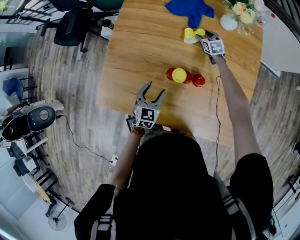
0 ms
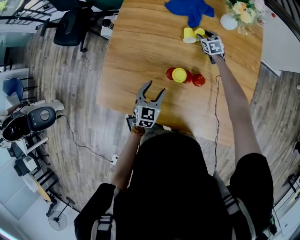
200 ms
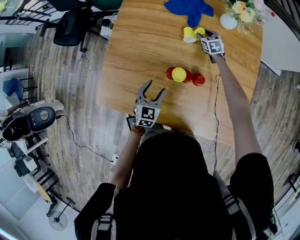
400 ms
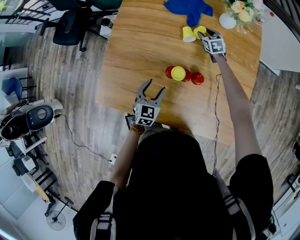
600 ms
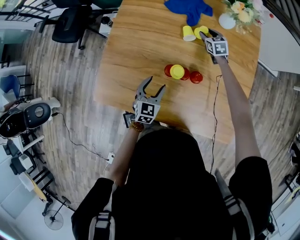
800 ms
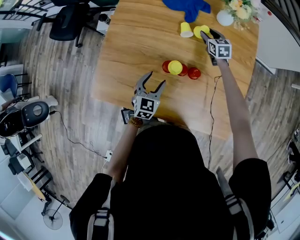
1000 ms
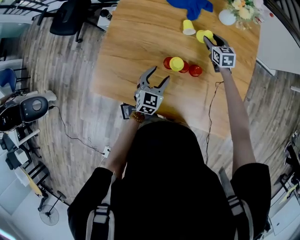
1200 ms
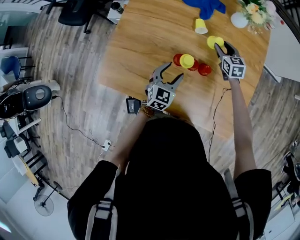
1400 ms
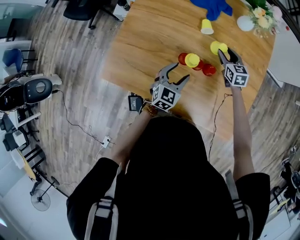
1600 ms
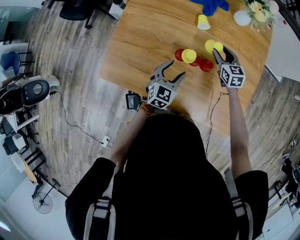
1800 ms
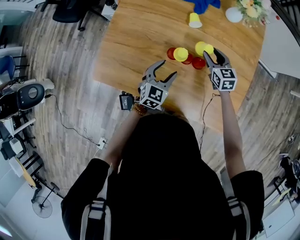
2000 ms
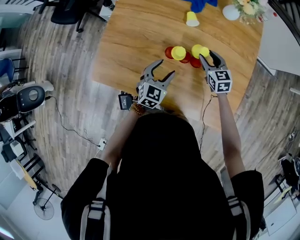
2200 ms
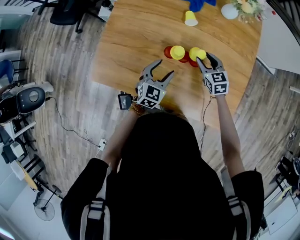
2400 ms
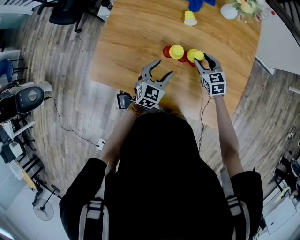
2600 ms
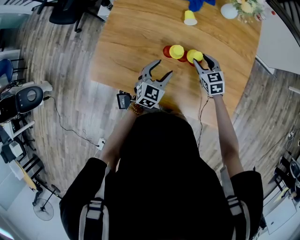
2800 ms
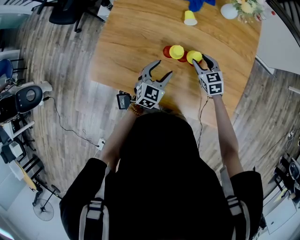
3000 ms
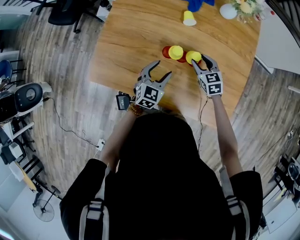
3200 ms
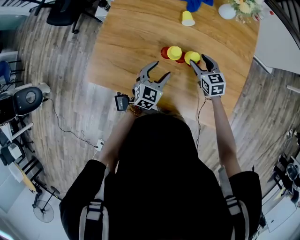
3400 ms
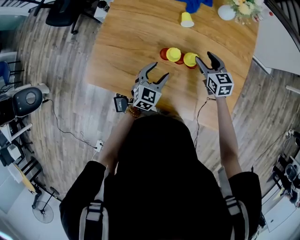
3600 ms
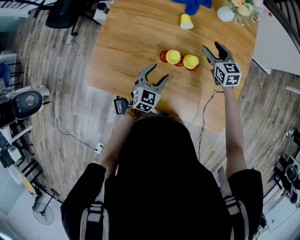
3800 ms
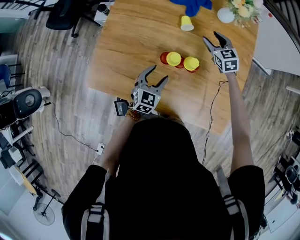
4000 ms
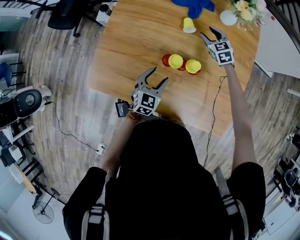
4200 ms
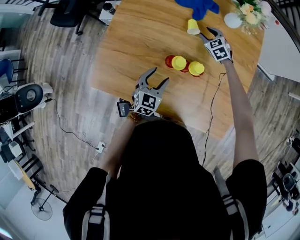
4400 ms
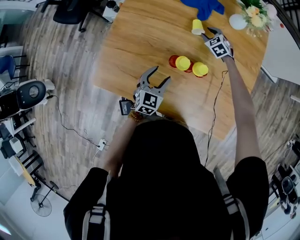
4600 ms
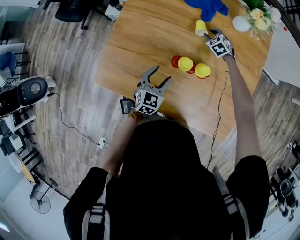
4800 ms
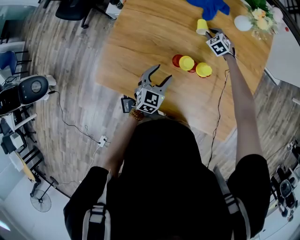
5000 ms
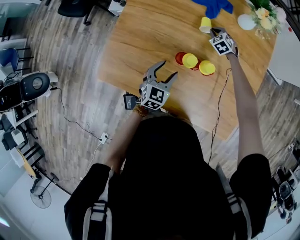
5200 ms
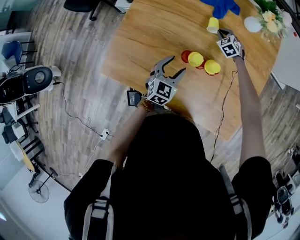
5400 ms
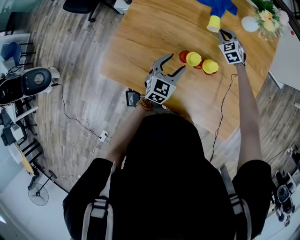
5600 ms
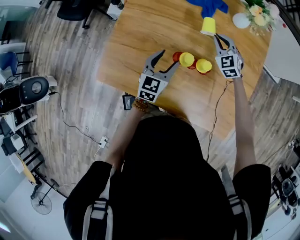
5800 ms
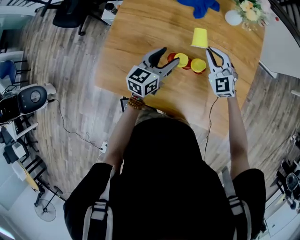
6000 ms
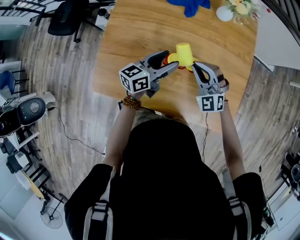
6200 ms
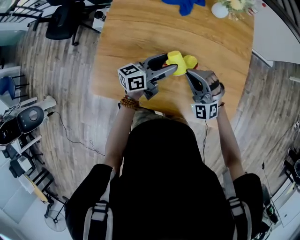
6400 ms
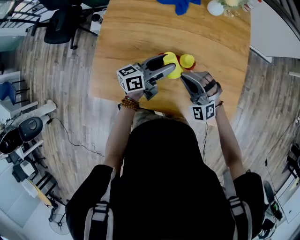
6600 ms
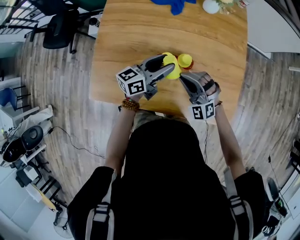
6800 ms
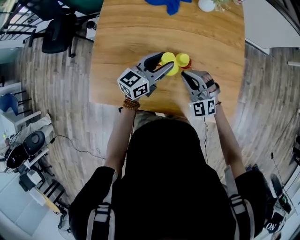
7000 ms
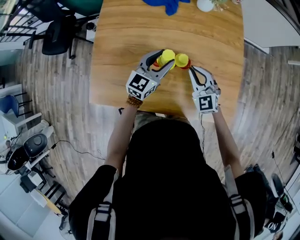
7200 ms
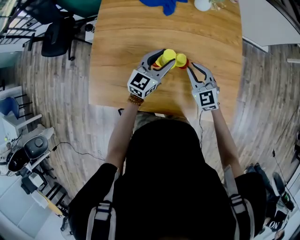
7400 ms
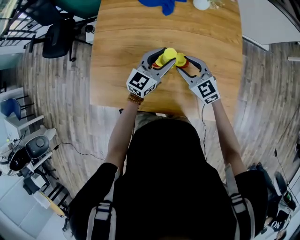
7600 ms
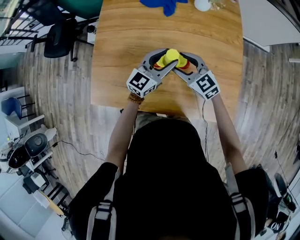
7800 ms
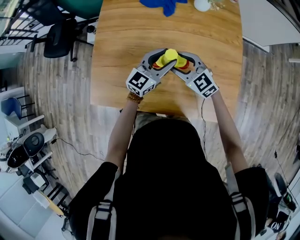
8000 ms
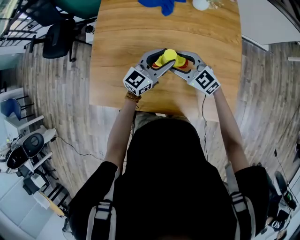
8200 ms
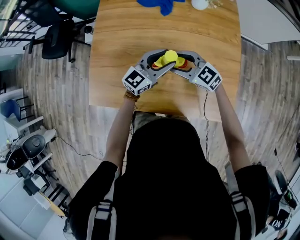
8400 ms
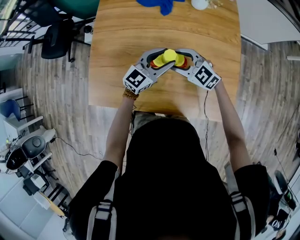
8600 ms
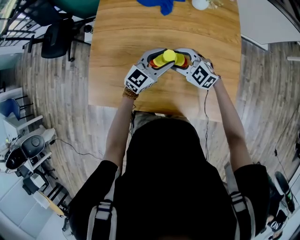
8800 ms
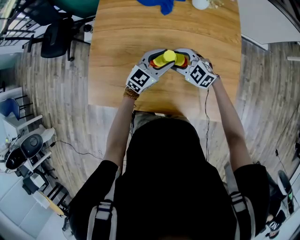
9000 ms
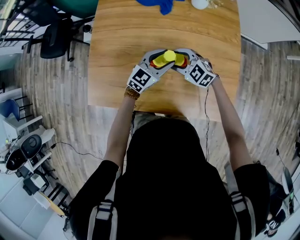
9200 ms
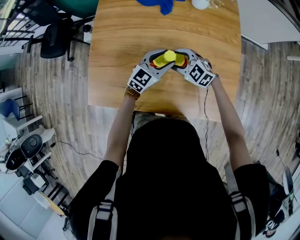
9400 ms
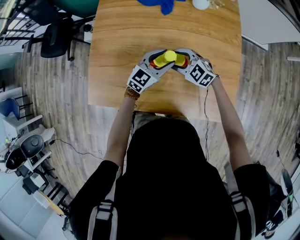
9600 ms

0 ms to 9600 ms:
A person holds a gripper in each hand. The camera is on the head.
0 ms to 1600 ms: The right gripper is displaced backward and upward by roughly 20 cm, while the left gripper is displaced to the right by approximately 5 cm.
1600 ms to 3200 ms: The right gripper moves backward, approximately 10 cm.
3200 ms to 4800 ms: The left gripper ends up approximately 5 cm from where it was; the right gripper goes some 25 cm forward, and turns by some 30 degrees.
4800 ms to 6400 ms: The right gripper moves backward and upward, roughly 35 cm, and tips its fingers upward by some 40 degrees. The left gripper travels upward and to the right by some 15 cm, and turns by approximately 60 degrees.
6400 ms to 8000 ms: The right gripper rolls clockwise, seen from behind, by about 40 degrees, and opens its fingers. Meanwhile the left gripper travels to the right by some 5 cm, and twists roughly 40 degrees clockwise, seen from behind.
8000 ms to 9600 ms: The left gripper ends up about 5 cm from where it was. The right gripper goes roughly 5 cm downward.

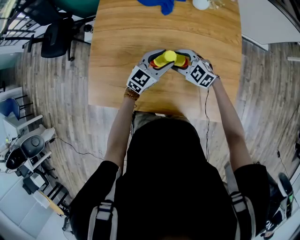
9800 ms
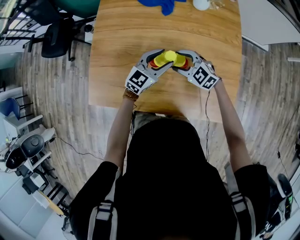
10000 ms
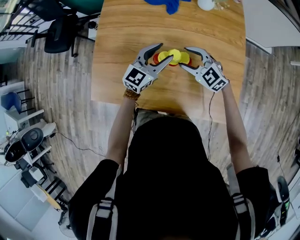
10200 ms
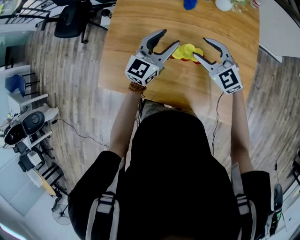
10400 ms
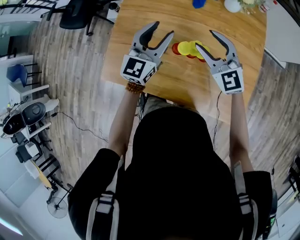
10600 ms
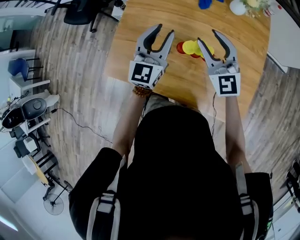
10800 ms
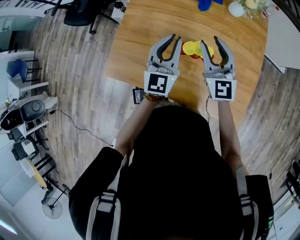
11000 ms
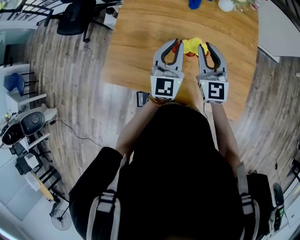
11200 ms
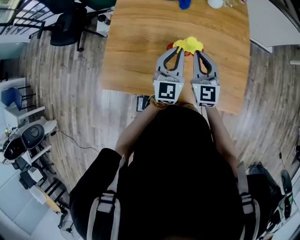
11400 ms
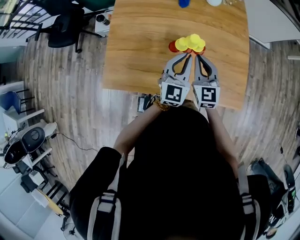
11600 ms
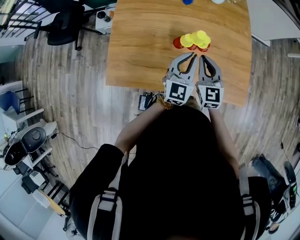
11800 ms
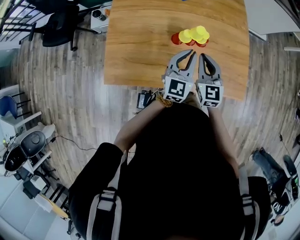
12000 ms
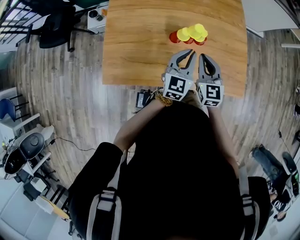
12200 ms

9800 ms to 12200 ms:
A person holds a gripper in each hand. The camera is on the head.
9800 ms to 11000 ms: The left gripper shifts about 20 cm upward and to the left, rotates about 50 degrees, and closes up. Meanwhile the right gripper is displaced upward by roughly 20 cm, and points its fingers roughly 40 degrees further upward.
11000 ms to 12200 ms: The left gripper heads downward, backward and to the right, covering roughly 15 cm, and changes its angle by about 30 degrees, while the right gripper moves backward and downward, some 15 cm, changes its angle by about 30 degrees, and closes its fingers.

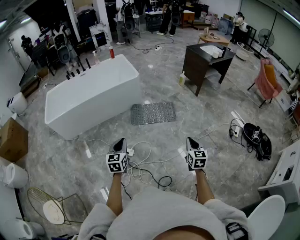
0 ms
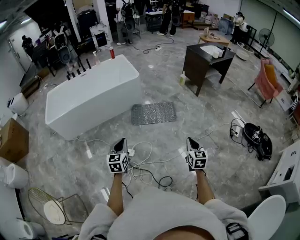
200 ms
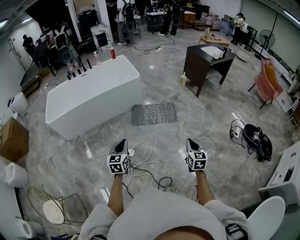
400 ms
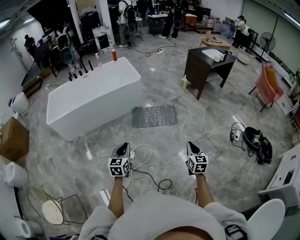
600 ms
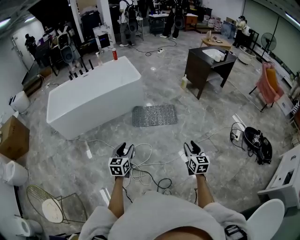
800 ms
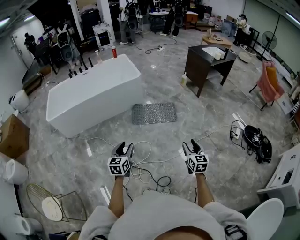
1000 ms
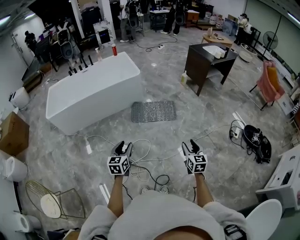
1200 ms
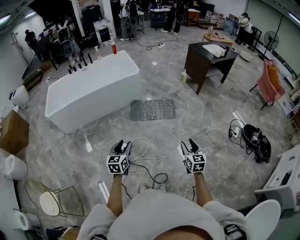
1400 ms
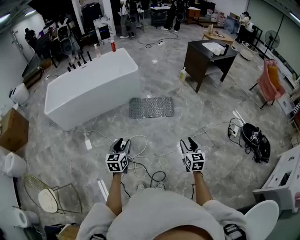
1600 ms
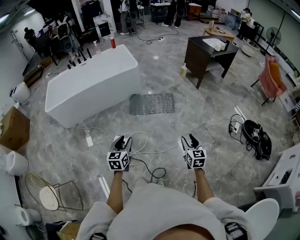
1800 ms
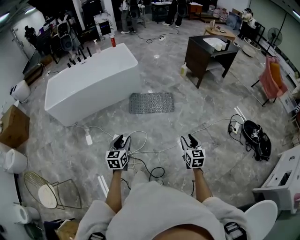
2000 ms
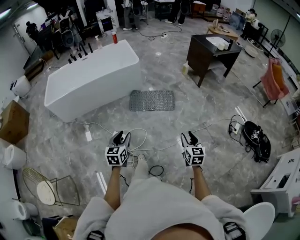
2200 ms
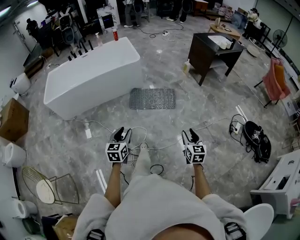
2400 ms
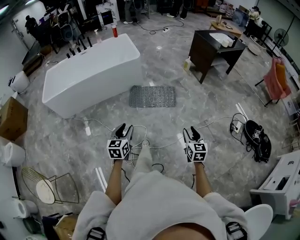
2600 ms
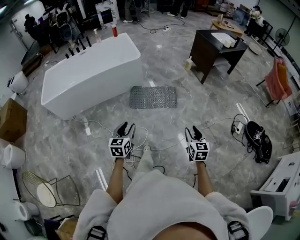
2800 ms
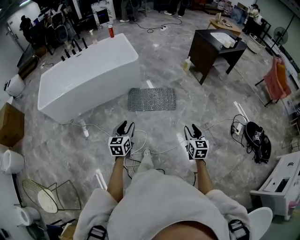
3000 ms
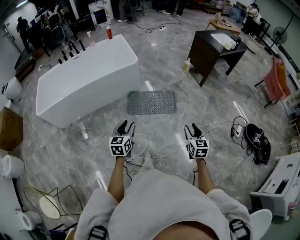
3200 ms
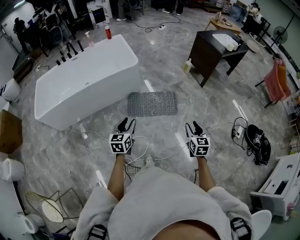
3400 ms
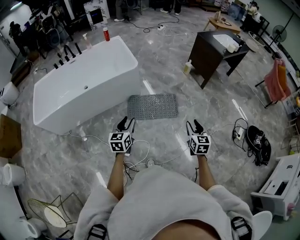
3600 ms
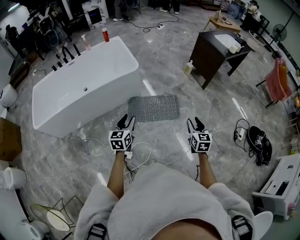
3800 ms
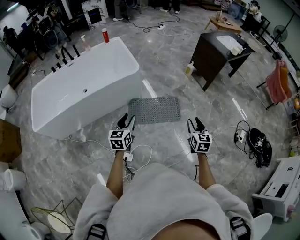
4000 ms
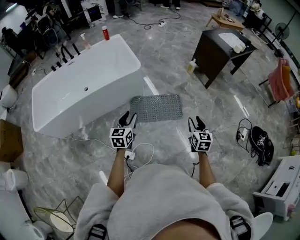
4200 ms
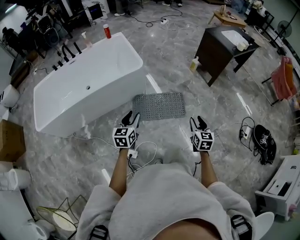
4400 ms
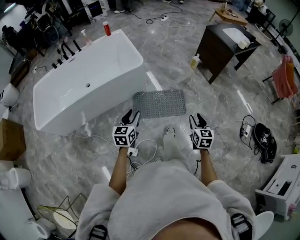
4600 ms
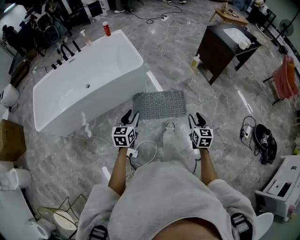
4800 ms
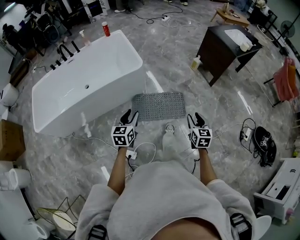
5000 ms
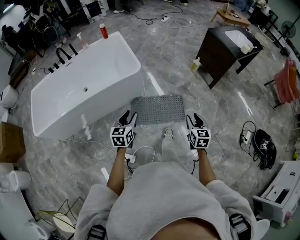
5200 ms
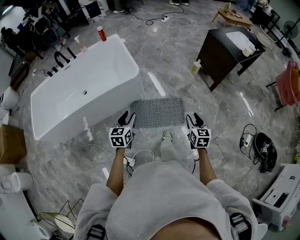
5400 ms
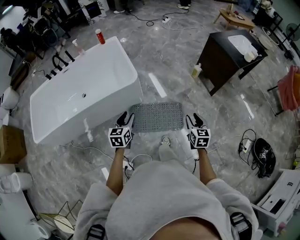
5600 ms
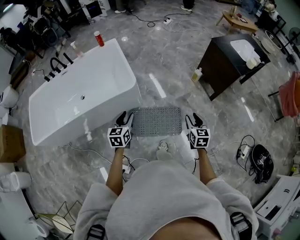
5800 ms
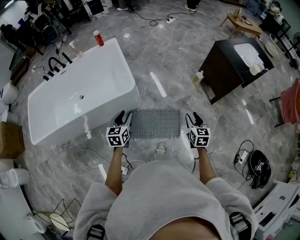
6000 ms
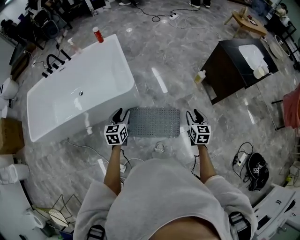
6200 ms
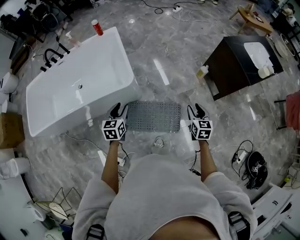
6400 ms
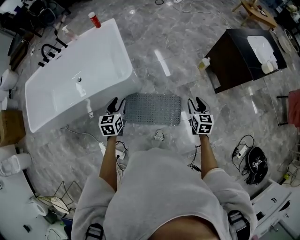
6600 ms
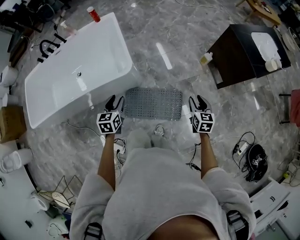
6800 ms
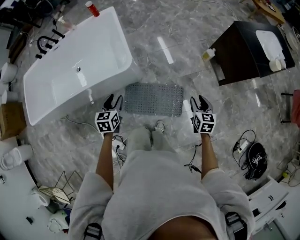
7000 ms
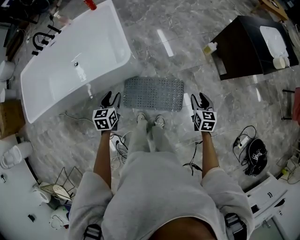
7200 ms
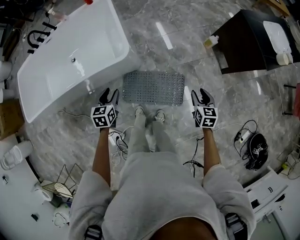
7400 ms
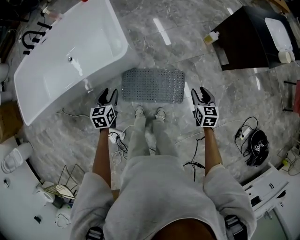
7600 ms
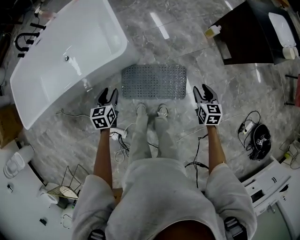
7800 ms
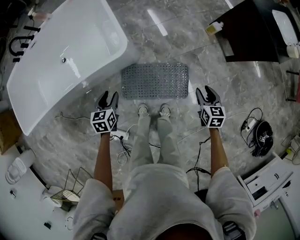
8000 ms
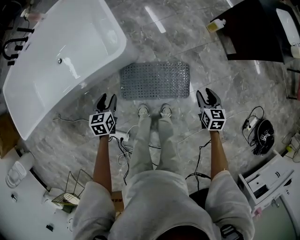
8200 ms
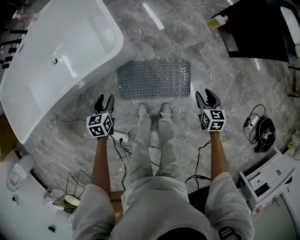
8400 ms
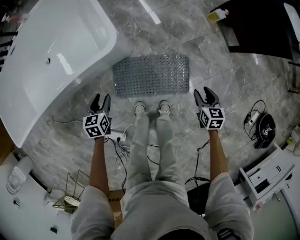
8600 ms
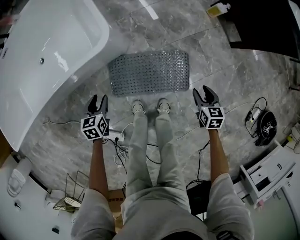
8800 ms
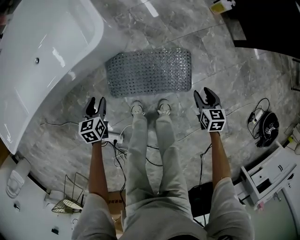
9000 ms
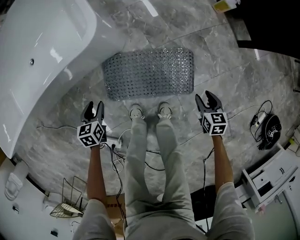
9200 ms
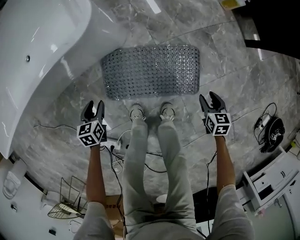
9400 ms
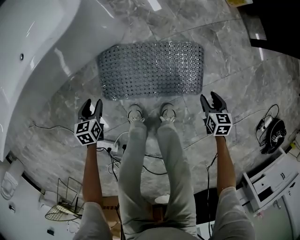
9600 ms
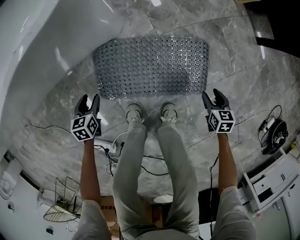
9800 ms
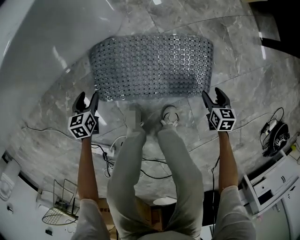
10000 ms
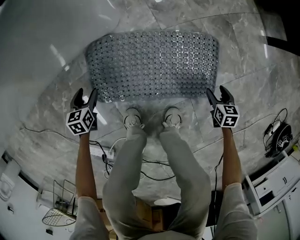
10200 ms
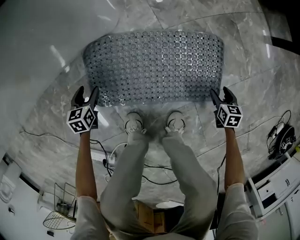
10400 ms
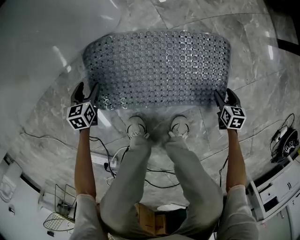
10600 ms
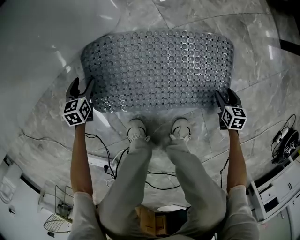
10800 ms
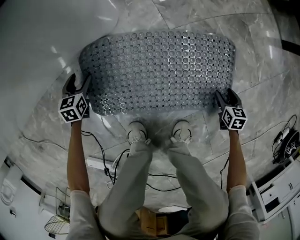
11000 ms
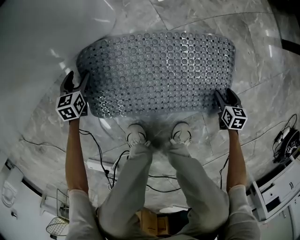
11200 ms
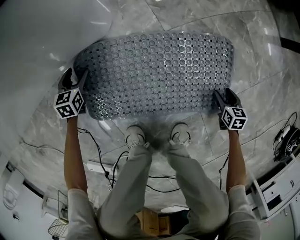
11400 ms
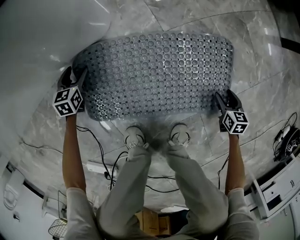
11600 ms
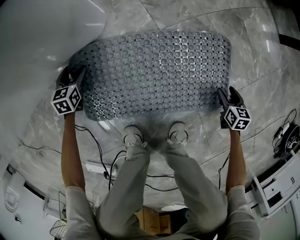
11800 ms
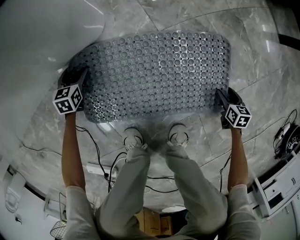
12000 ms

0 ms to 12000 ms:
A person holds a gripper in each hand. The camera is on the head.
0 ms to 1600 ms: The left gripper goes roughly 5 cm to the right, and opens up, while the right gripper ends up roughly 5 cm from where it was, and opens its fingers.
1600 ms to 3000 ms: Both grippers travel together forward, approximately 15 cm.
3000 ms to 4400 ms: Both grippers travel together forward, some 25 cm.
4400 ms to 6000 ms: Both grippers move forward, about 35 cm.
6000 ms to 7600 ms: The two grippers go approximately 15 cm downward and forward.
7600 ms to 9000 ms: Both grippers travel together downward, about 30 cm.
9000 ms to 10400 ms: The two grippers go about 40 cm downward.
10400 ms to 12000 ms: The right gripper shifts about 10 cm downward; the left gripper travels forward and downward by approximately 15 cm.
